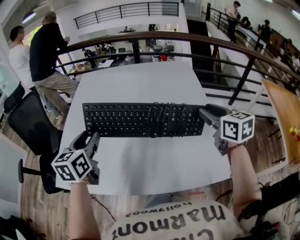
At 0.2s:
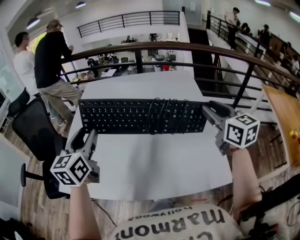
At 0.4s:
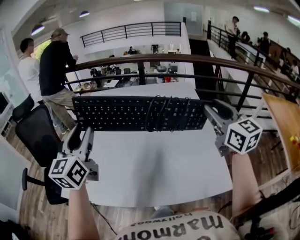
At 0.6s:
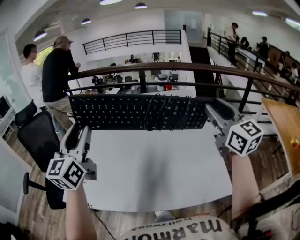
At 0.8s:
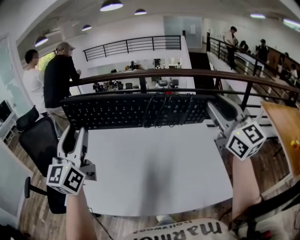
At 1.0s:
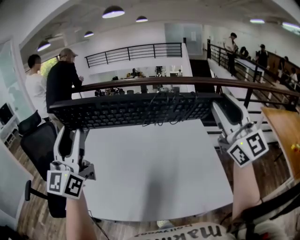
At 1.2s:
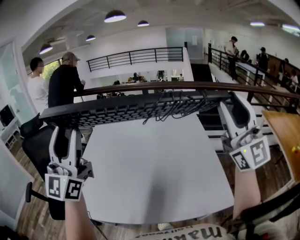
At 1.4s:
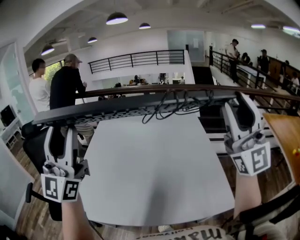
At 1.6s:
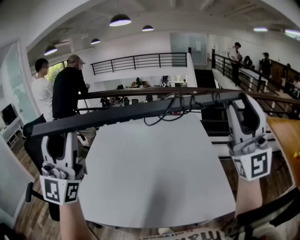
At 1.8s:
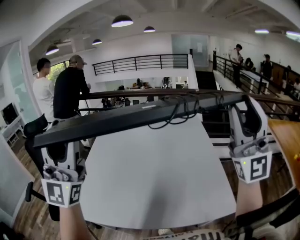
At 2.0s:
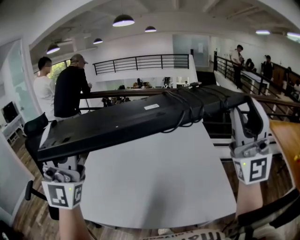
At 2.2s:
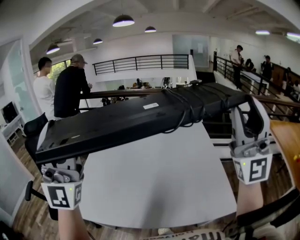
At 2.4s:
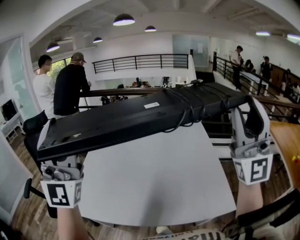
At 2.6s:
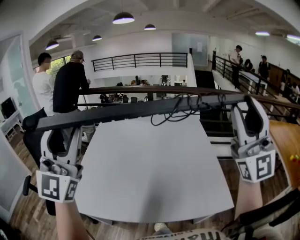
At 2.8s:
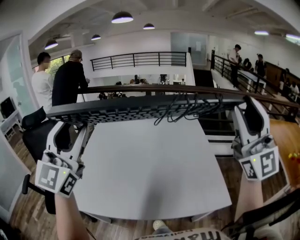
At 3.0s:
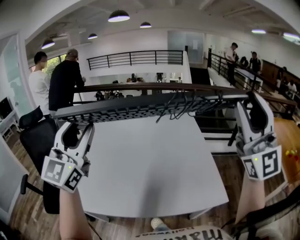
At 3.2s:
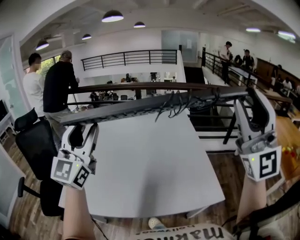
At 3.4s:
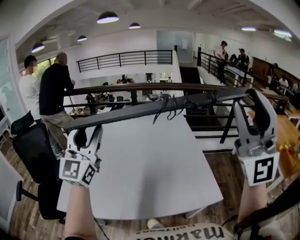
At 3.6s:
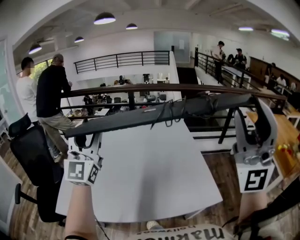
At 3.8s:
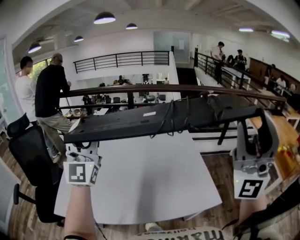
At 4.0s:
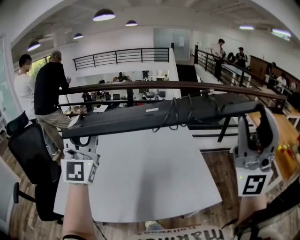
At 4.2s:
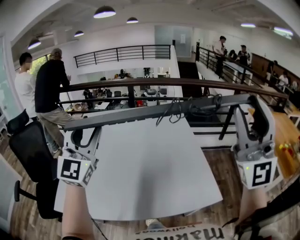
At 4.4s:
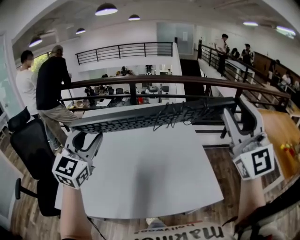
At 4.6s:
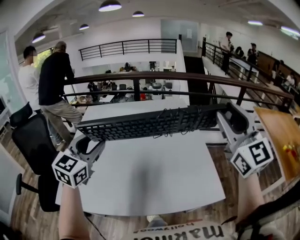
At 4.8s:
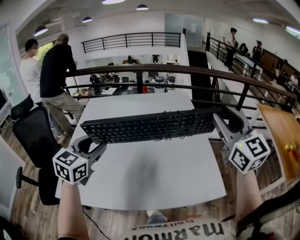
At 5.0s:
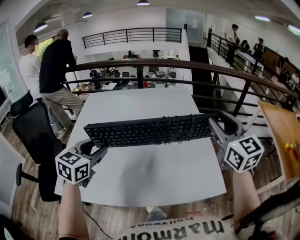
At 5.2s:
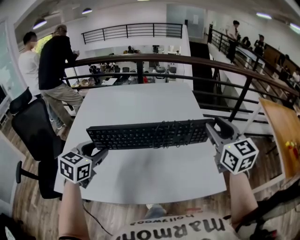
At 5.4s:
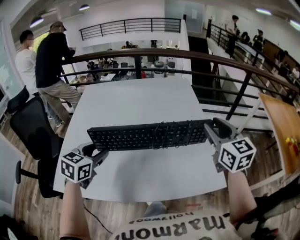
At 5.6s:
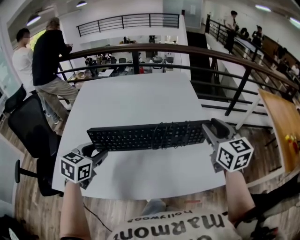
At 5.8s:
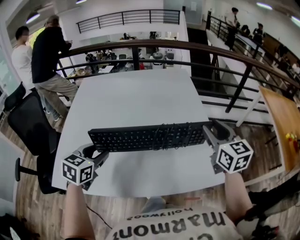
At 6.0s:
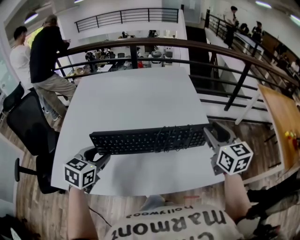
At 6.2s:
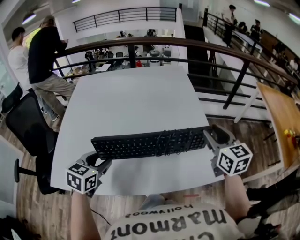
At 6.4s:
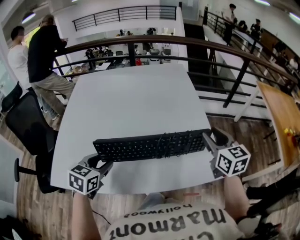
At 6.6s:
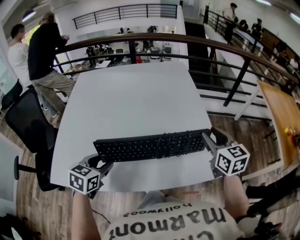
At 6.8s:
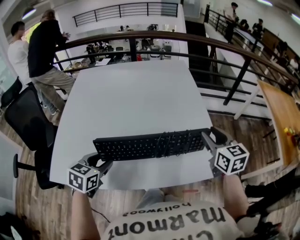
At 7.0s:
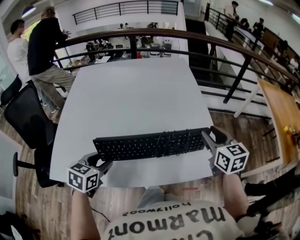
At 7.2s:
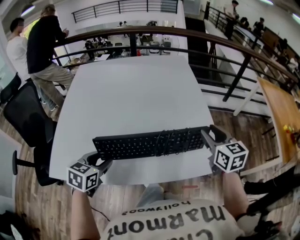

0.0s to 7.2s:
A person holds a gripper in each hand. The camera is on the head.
0.0s to 1.4s: The grippers both shift upward and backward by some 20 cm. The right gripper tips its fingers upward by roughly 60 degrees. Meanwhile the left gripper angles its fingers upward, by about 60 degrees.
1.4s to 2.8s: The left gripper changes its angle by some 20 degrees, while the right gripper heads backward, covering roughly 5 cm.
2.8s to 4.4s: The right gripper moves to the right, about 5 cm, and moves approximately 10 cm backward and comes back. The left gripper moves downward, forward and to the right, about 20 cm.
4.4s to 5.8s: The left gripper shifts roughly 25 cm downward, and angles its fingers downward, by about 40 degrees; the right gripper goes approximately 30 cm downward and forward, and tips its fingers downward by some 40 degrees.
5.8s to 7.2s: The left gripper heads backward and downward, covering some 10 cm; the right gripper heads downward and backward, covering about 10 cm.

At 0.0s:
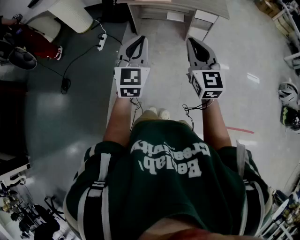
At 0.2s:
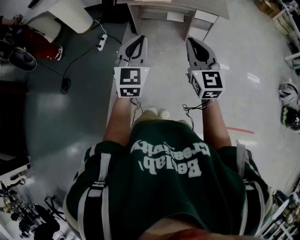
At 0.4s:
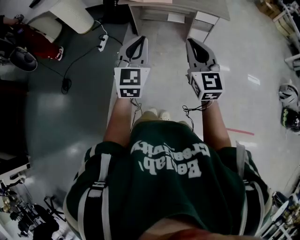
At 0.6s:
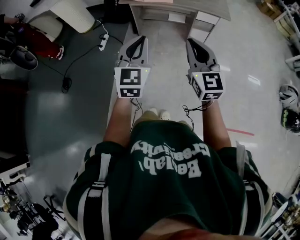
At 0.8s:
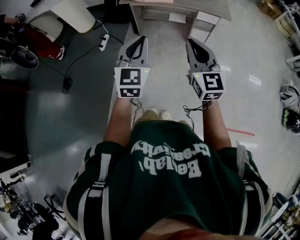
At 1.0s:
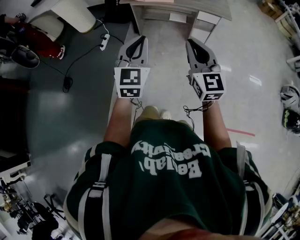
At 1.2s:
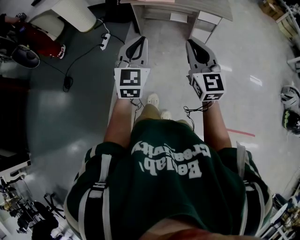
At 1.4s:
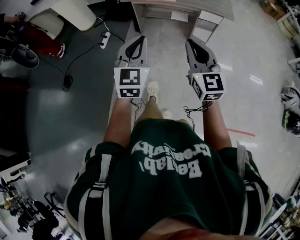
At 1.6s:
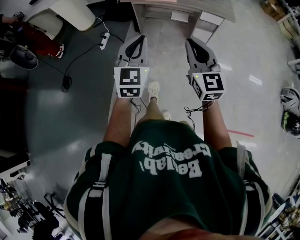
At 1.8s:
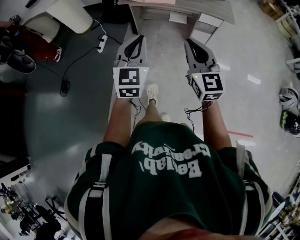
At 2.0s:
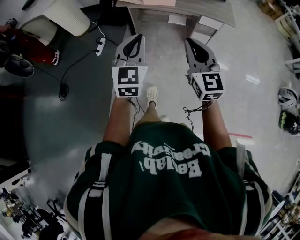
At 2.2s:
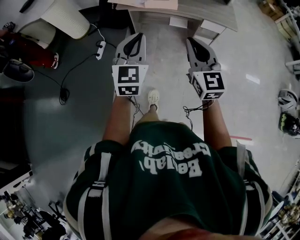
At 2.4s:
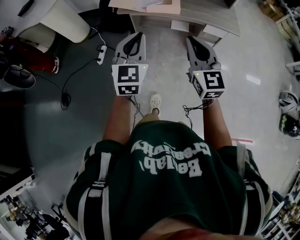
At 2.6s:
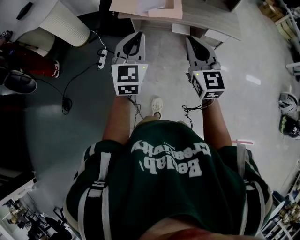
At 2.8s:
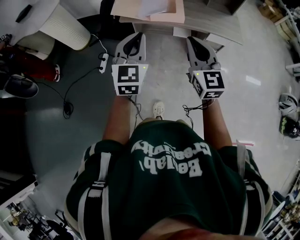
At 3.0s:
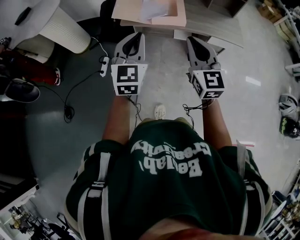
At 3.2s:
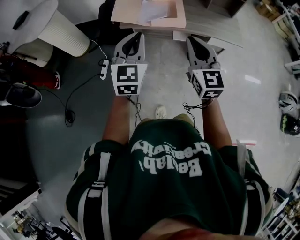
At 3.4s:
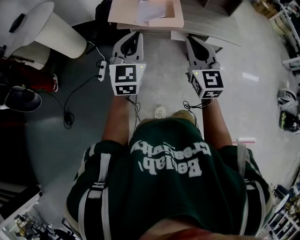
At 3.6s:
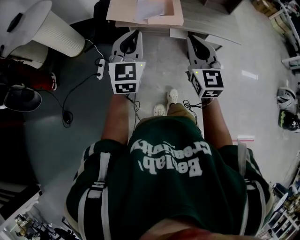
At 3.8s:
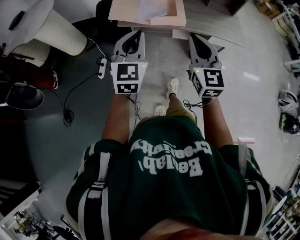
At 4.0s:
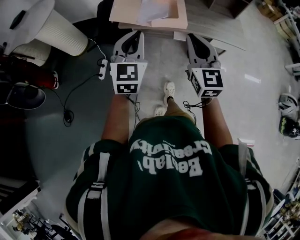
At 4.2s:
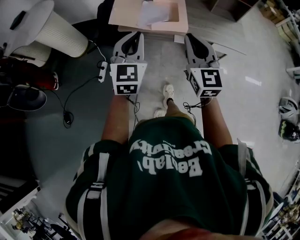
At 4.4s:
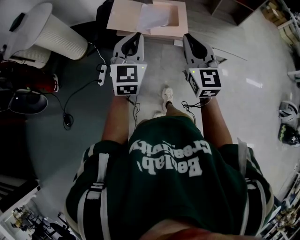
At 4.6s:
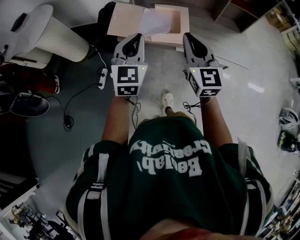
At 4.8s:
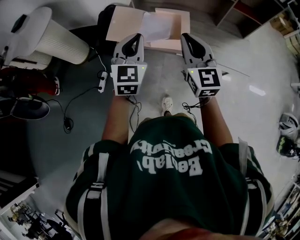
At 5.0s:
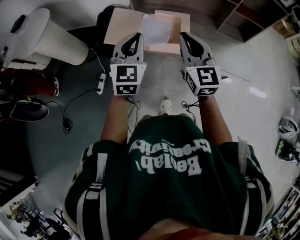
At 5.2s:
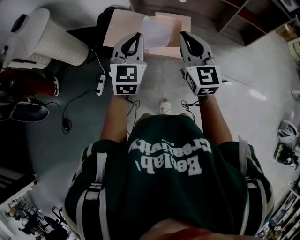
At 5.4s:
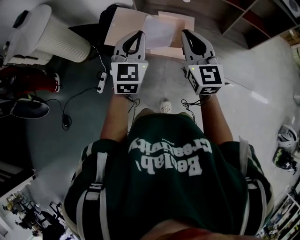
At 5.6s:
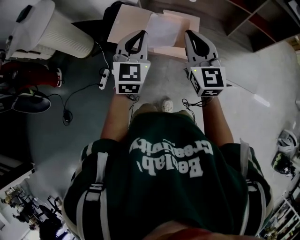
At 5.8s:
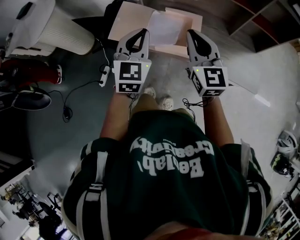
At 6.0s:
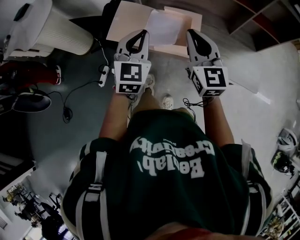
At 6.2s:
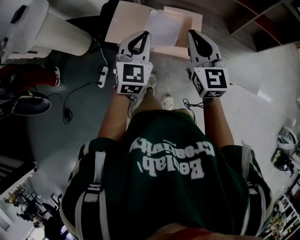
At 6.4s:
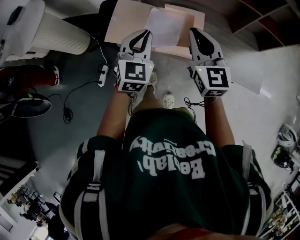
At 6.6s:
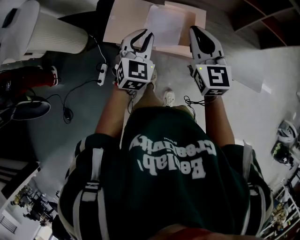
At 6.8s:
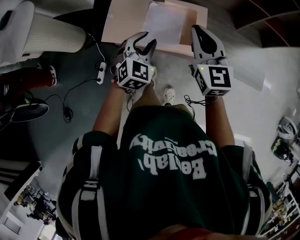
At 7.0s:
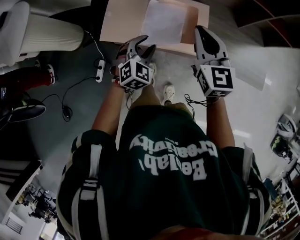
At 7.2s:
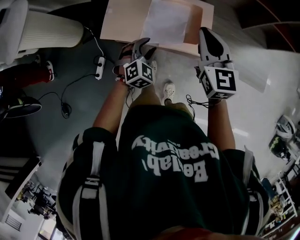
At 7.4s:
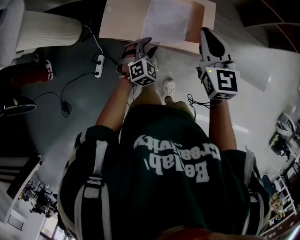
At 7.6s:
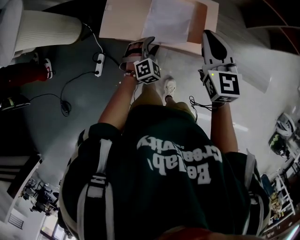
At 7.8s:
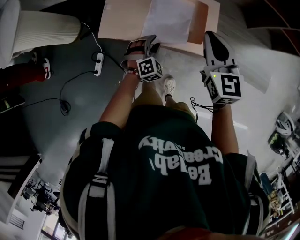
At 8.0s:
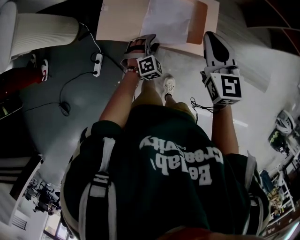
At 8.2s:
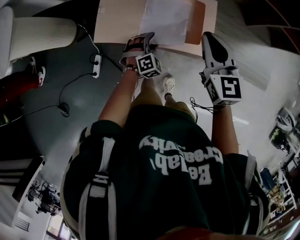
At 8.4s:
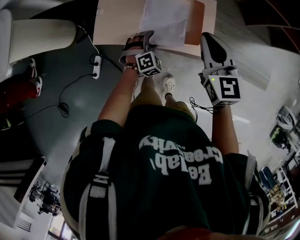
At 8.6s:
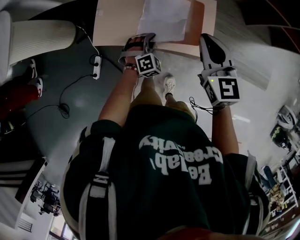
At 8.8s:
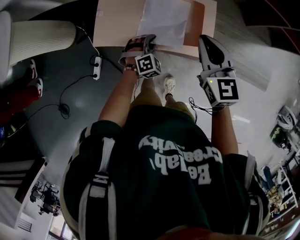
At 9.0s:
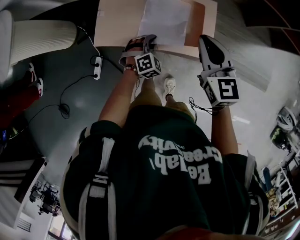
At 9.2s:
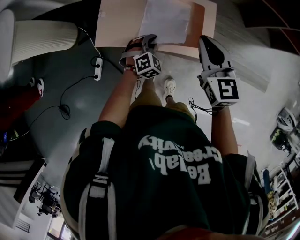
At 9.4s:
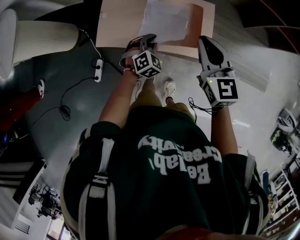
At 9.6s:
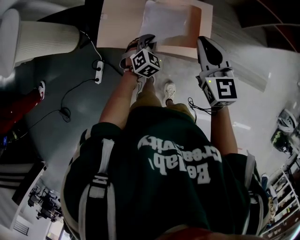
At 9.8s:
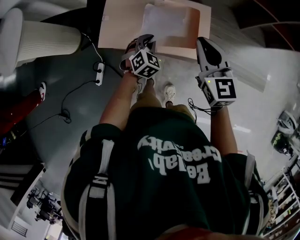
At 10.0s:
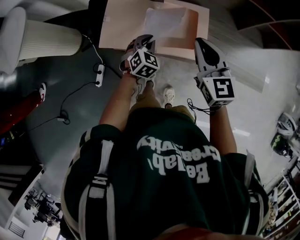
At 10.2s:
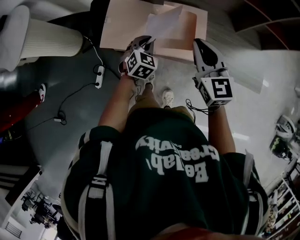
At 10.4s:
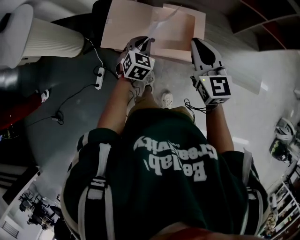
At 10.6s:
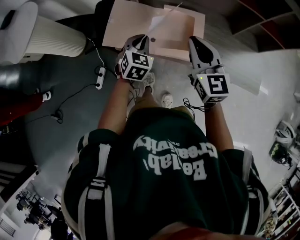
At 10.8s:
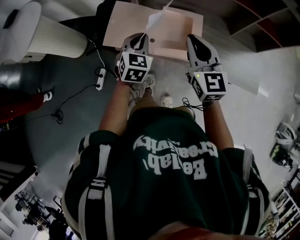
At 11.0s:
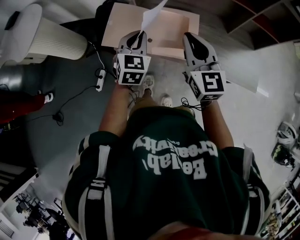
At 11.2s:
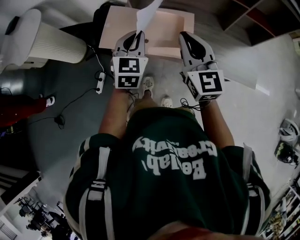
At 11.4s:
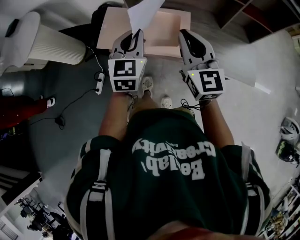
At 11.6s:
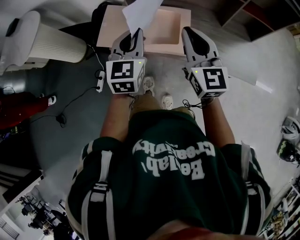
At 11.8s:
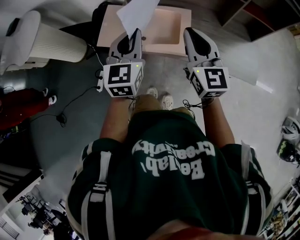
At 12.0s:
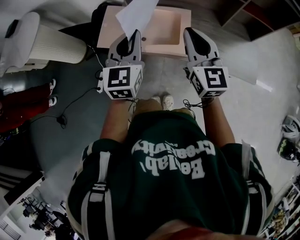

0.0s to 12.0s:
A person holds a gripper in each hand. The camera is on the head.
0.0s to 1.6s: The left gripper goes approximately 5 cm forward. Meanwhile the right gripper moves some 5 cm.
1.6s to 3.0s: Both grippers travel together forward, about 35 cm.
3.0s to 4.4s: The grippers both shift forward by roughly 15 cm.
4.4s to 6.0s: The grippers both shift forward by some 25 cm.
6.0s to 7.6s: The right gripper heads downward and forward, covering roughly 15 cm; the left gripper travels downward by approximately 30 cm, angles its fingers downward, by approximately 30 degrees, and opens.
7.6s to 9.0s: The left gripper shifts by some 5 cm, and closes up.
9.0s to 10.4s: The right gripper goes approximately 5 cm upward; the left gripper heads upward, covering approximately 15 cm, and changes its angle by roughly 30 degrees.
10.4s to 12.0s: The right gripper is displaced backward, upward and to the right by approximately 15 cm. Meanwhile the left gripper is displaced upward and backward by roughly 25 cm, and changes its angle by some 30 degrees.

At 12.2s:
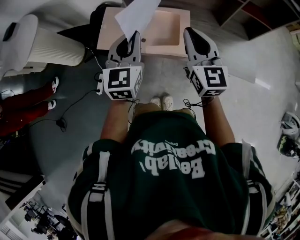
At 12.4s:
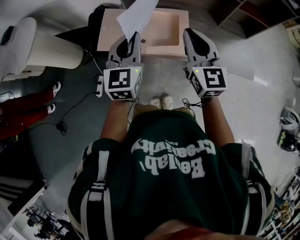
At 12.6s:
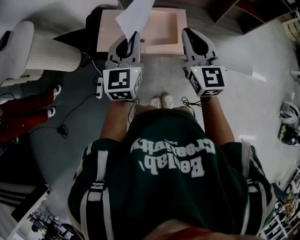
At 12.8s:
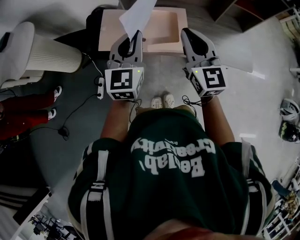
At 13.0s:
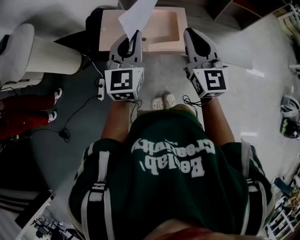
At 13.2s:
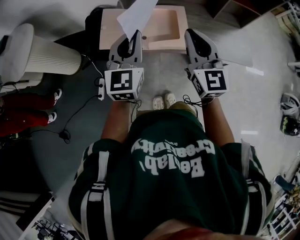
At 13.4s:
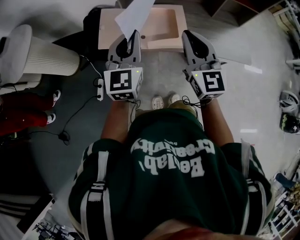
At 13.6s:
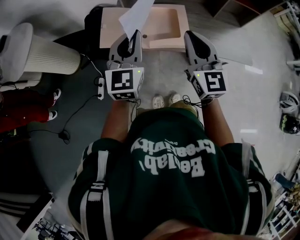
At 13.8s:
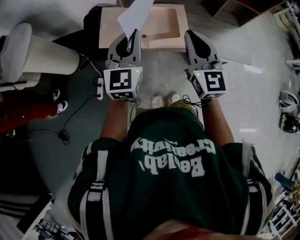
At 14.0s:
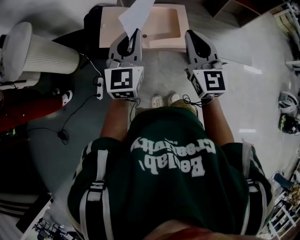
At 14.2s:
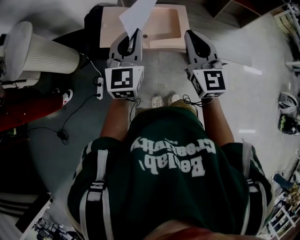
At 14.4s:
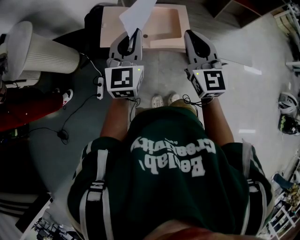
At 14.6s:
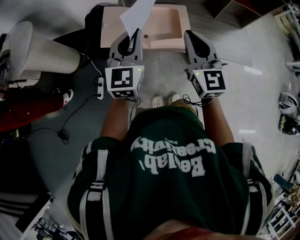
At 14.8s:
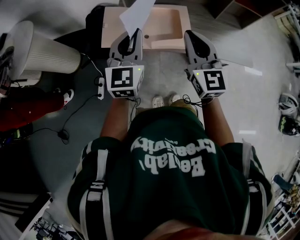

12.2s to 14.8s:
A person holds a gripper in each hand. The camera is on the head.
12.2s to 13.4s: The left gripper travels to the left and backward by some 10 cm. Meanwhile the right gripper is displaced backward and to the left by roughly 10 cm.
13.4s to 14.8s: The grippers make only small movements.

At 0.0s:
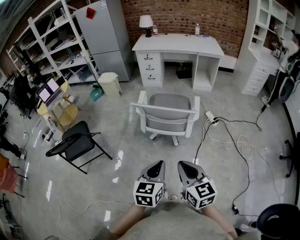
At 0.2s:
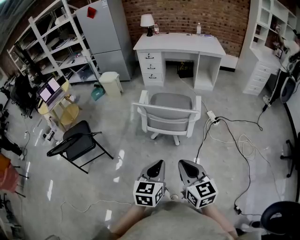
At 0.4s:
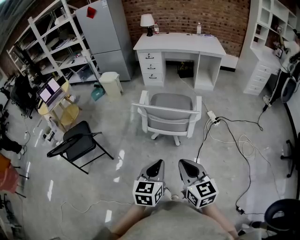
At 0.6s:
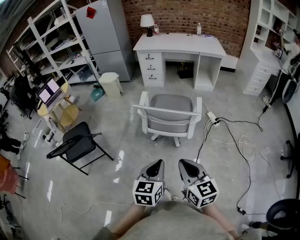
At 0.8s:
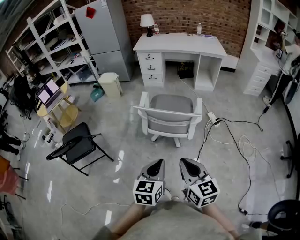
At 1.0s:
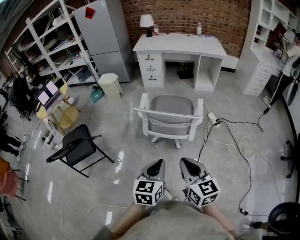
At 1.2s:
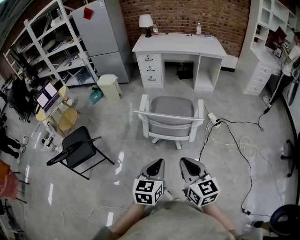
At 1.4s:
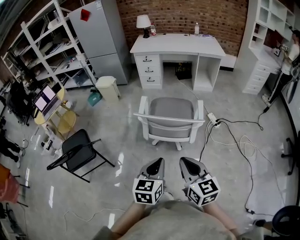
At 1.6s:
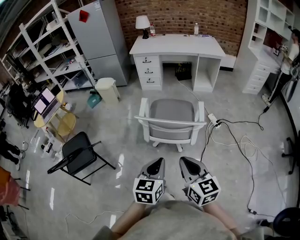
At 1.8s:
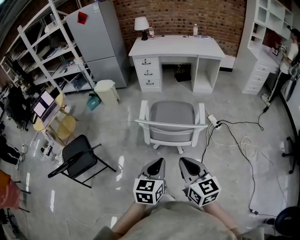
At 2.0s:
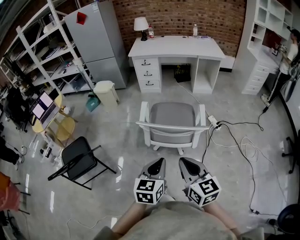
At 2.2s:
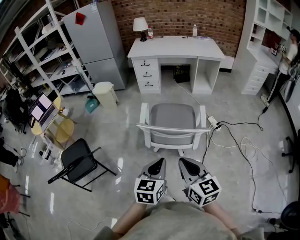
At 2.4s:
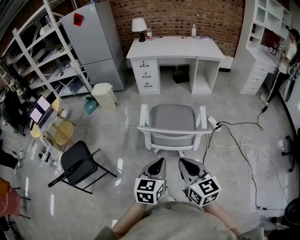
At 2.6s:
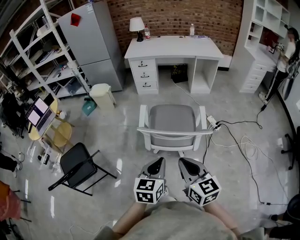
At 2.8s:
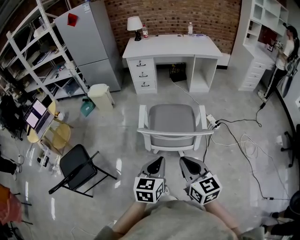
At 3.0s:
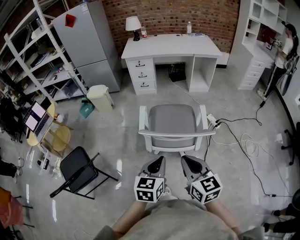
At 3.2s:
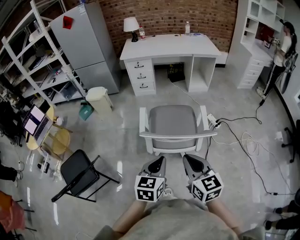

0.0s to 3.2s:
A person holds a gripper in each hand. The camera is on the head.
0.0s to 1.6s: Both grippers move forward, roughly 10 cm.
1.6s to 3.2s: Both grippers move forward and to the left, approximately 15 cm.
